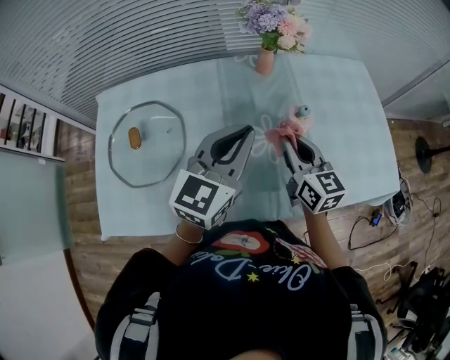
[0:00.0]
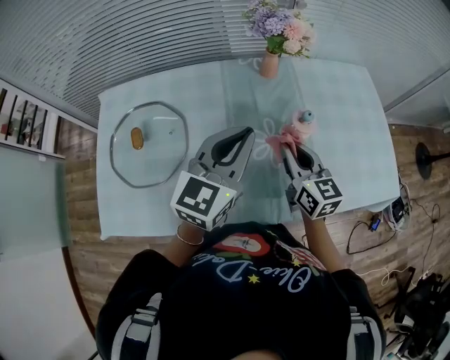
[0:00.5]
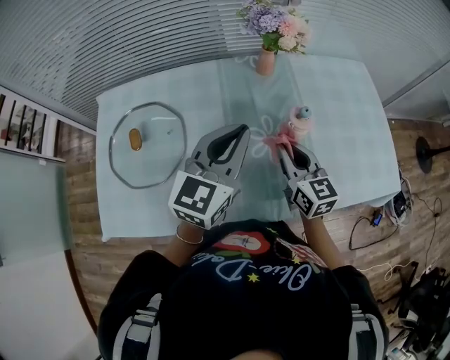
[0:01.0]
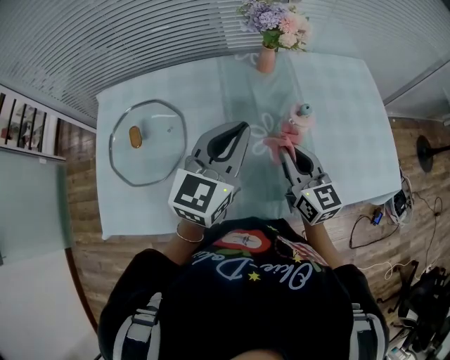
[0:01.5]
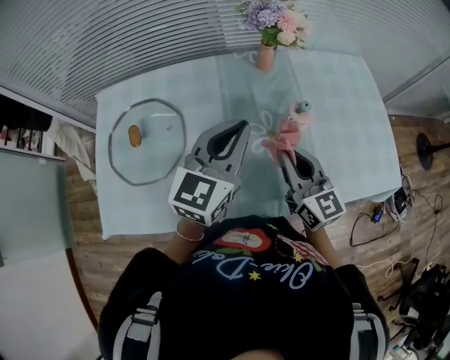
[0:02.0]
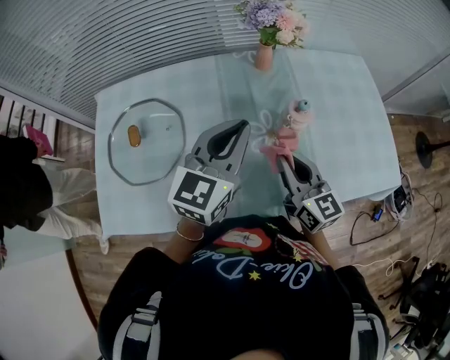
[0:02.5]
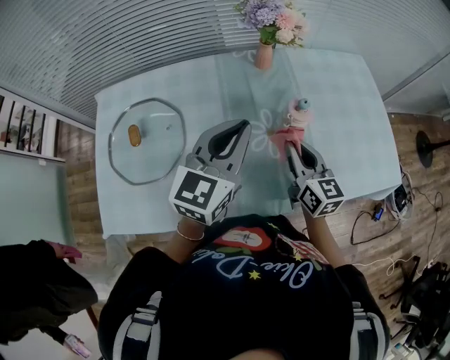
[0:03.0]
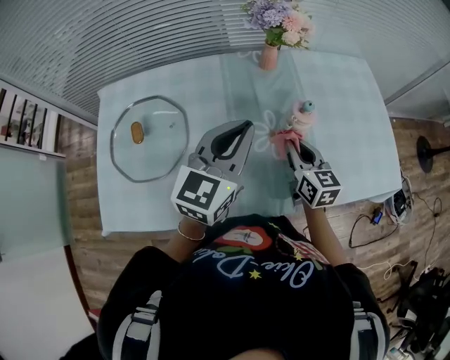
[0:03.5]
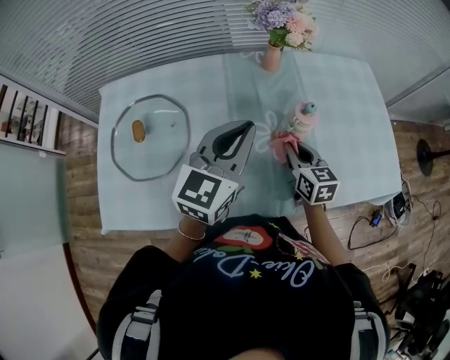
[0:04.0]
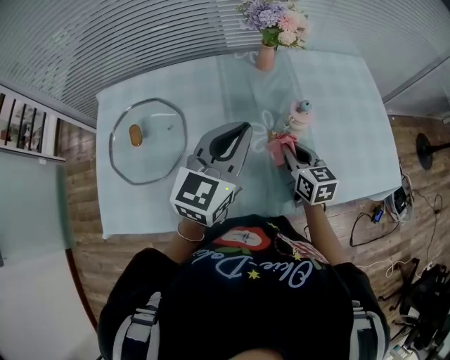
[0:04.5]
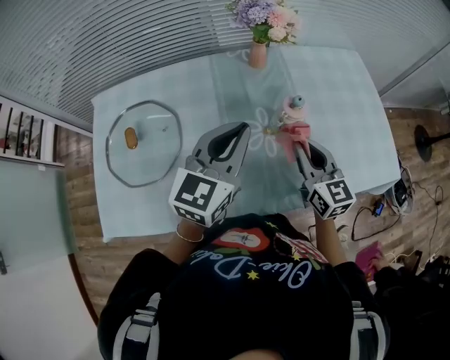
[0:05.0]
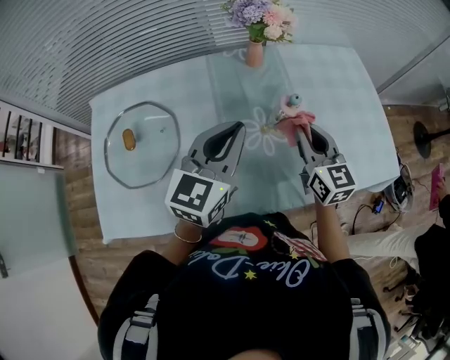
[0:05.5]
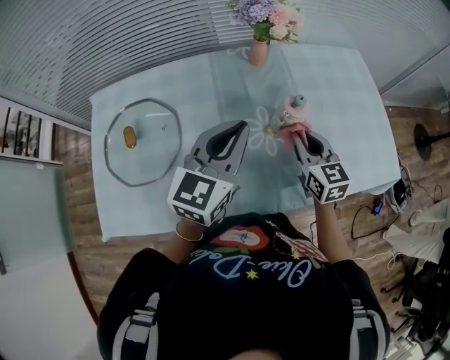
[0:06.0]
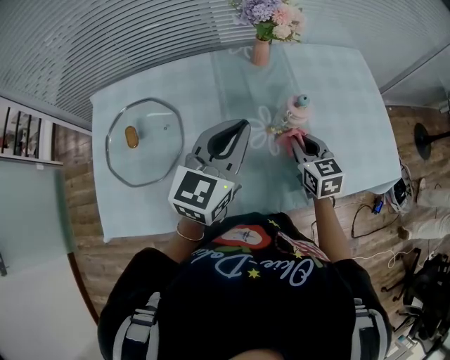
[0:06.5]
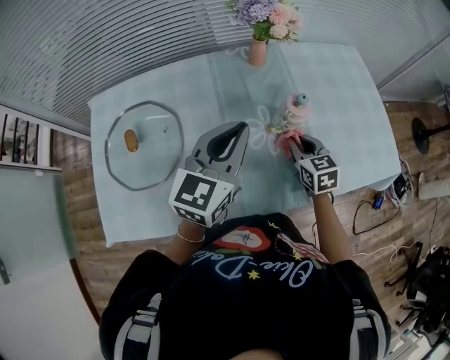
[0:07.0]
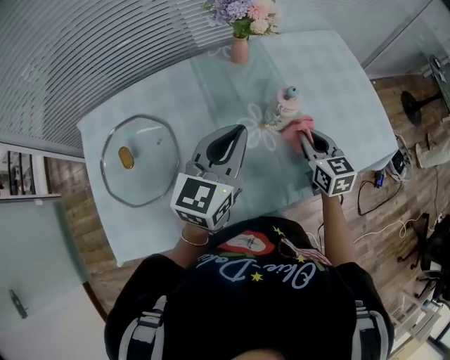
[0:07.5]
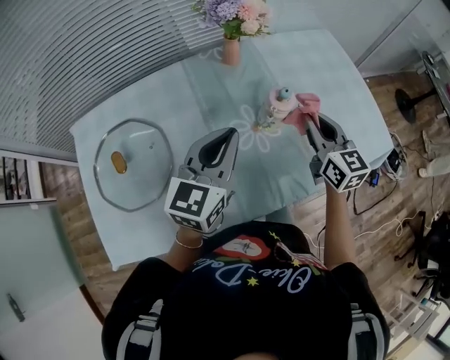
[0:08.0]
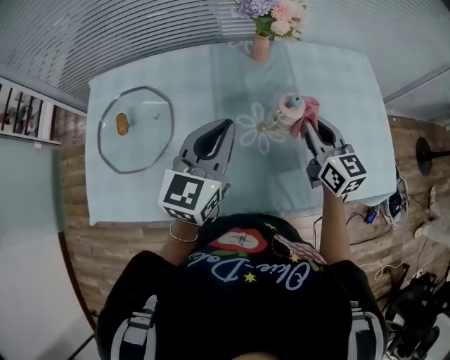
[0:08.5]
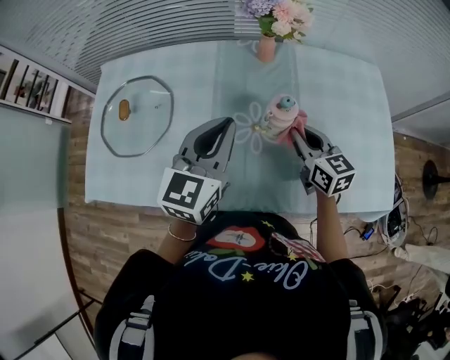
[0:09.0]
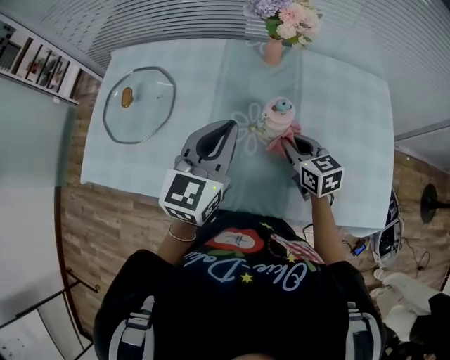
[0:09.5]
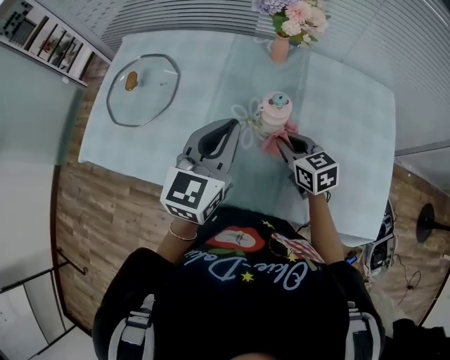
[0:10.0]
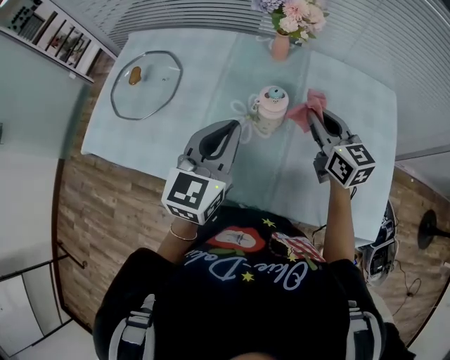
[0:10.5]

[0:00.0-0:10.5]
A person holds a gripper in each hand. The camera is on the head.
0:00.0 to 0:02.0: The right gripper changes place by roughly 5 cm.
0:02.0 to 0:04.0: The right gripper goes about 10 cm downward, and swivels about 20 degrees.
0:04.0 to 0:06.5: The right gripper moves some 10 cm upward and comes back.
0:06.5 to 0:08.5: The right gripper moves upward, about 10 cm.
0:08.5 to 0:10.5: The left gripper is displaced to the right and backward by about 10 cm; the right gripper moves to the right, approximately 5 cm, goes downward and returns, approximately 10 cm each way, and rotates some 20 degrees.

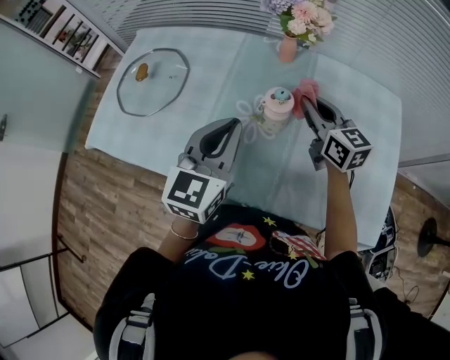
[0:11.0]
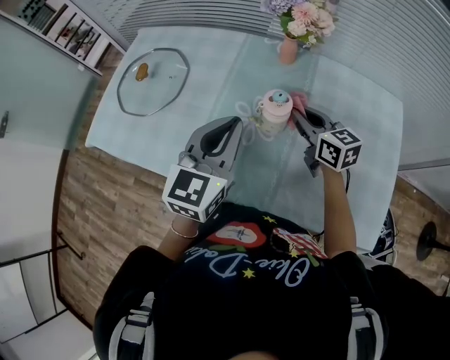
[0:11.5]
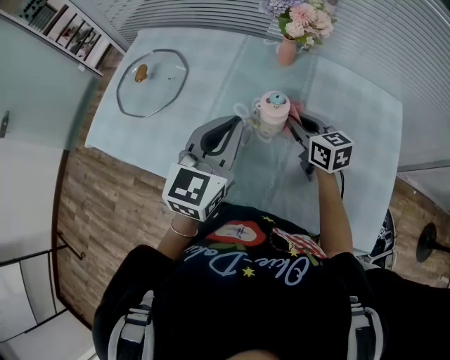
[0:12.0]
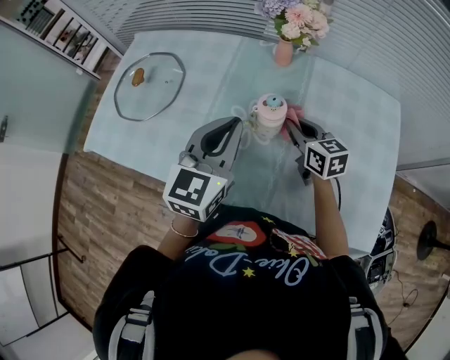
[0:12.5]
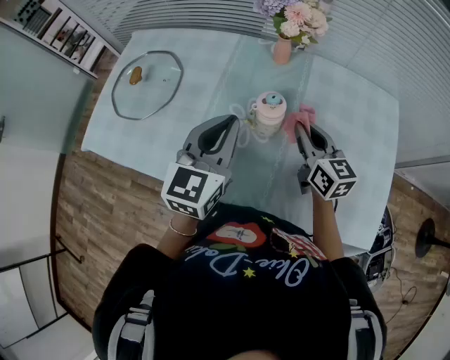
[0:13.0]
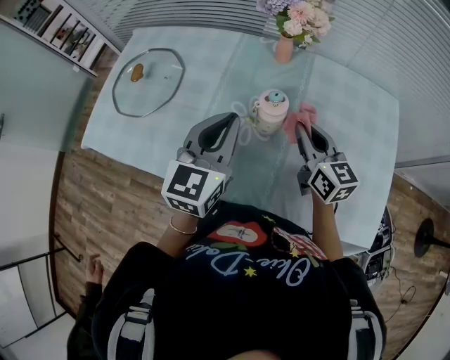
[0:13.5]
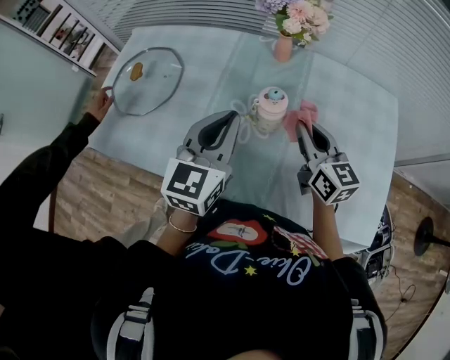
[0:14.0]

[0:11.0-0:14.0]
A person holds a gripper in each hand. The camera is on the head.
0:11.0 to 0:12.5: The right gripper goes roughly 10 cm downward.
0:12.5 to 0:14.0: The right gripper shifts about 10 cm upward.

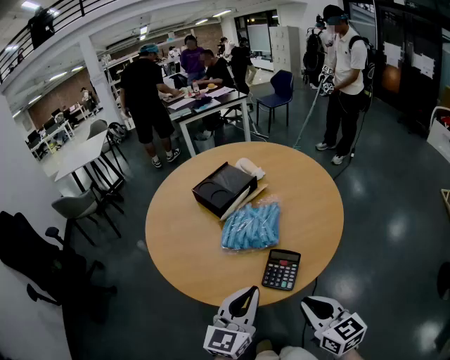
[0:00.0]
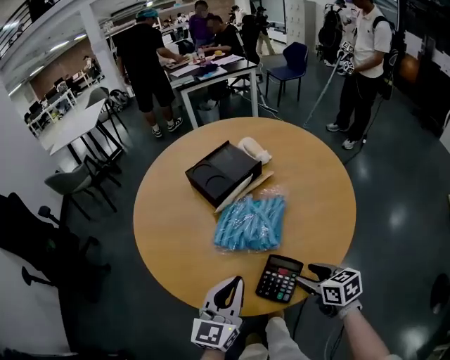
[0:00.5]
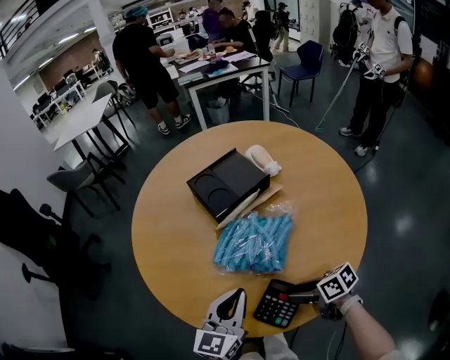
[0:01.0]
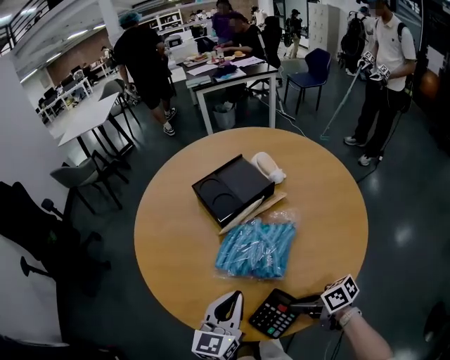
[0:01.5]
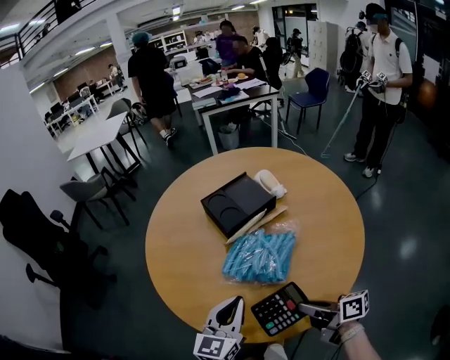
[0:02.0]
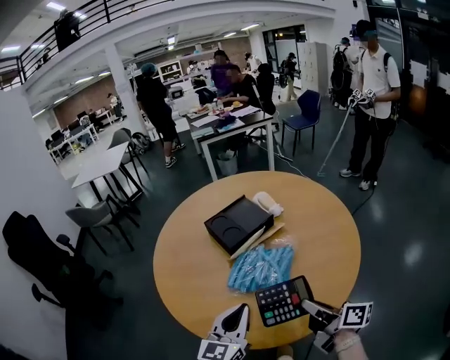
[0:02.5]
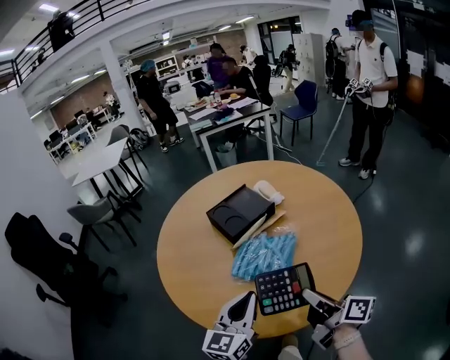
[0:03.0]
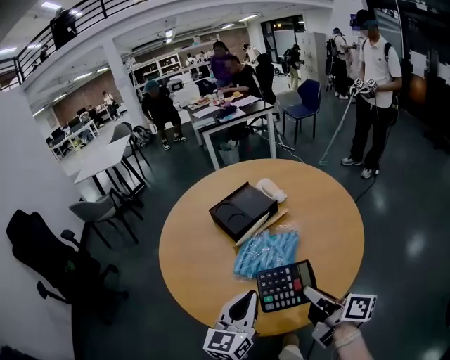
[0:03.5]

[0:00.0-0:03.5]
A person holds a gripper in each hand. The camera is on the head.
0:00.0 to 0:02.0: The right gripper ends up about 20 cm from where it was, turns by some 60 degrees, and opens and closes again, while the left gripper ends up approximately 15 cm from where it was.
0:02.0 to 0:03.5: The left gripper heads upward, covering approximately 5 cm. The right gripper goes some 10 cm upward, and changes its angle by roughly 30 degrees.

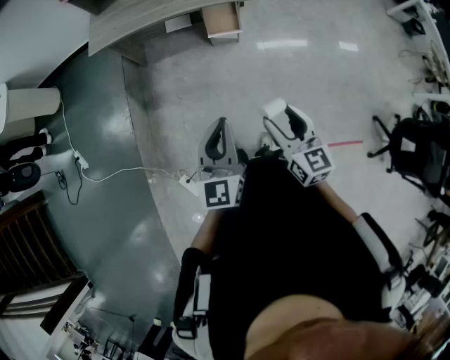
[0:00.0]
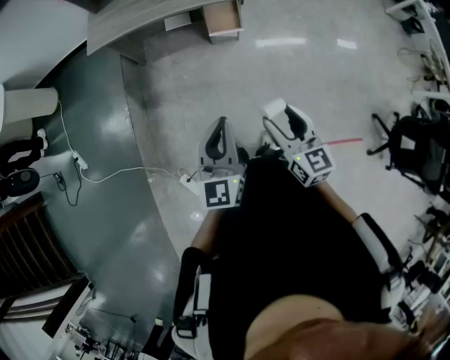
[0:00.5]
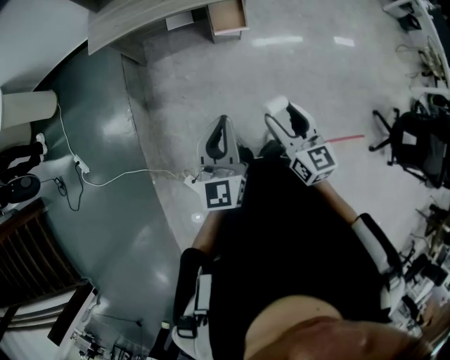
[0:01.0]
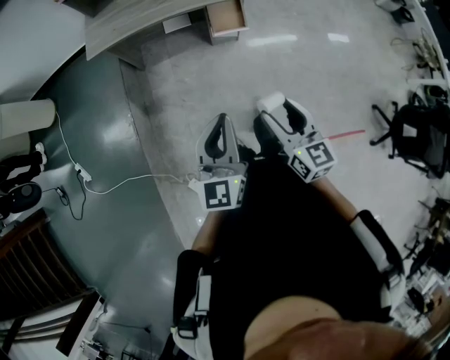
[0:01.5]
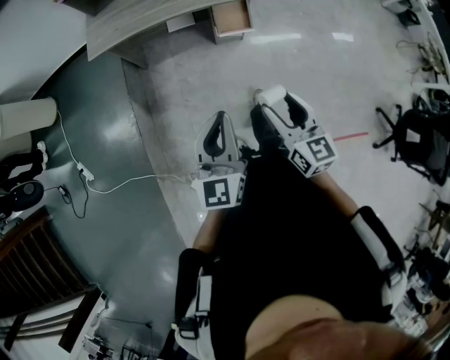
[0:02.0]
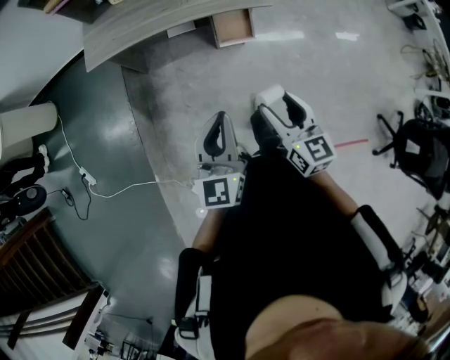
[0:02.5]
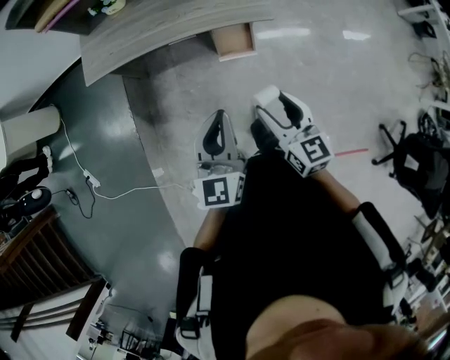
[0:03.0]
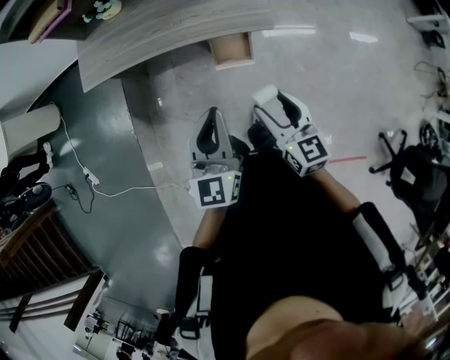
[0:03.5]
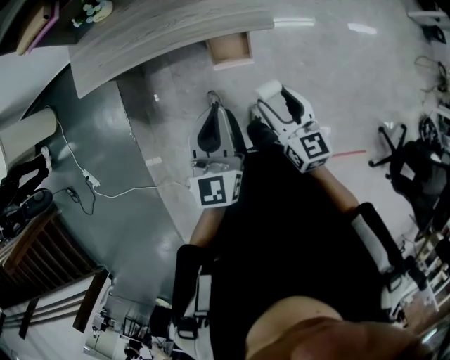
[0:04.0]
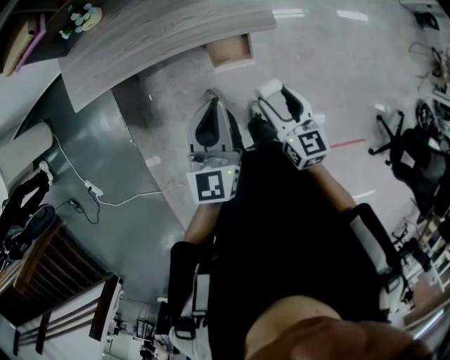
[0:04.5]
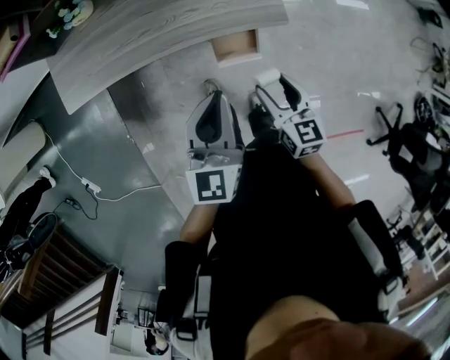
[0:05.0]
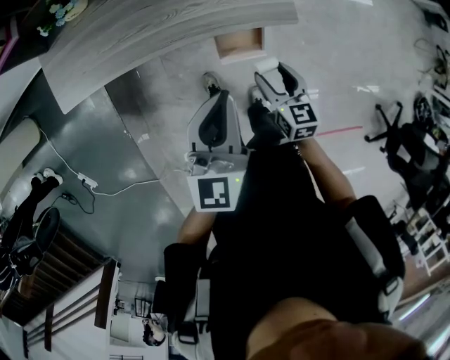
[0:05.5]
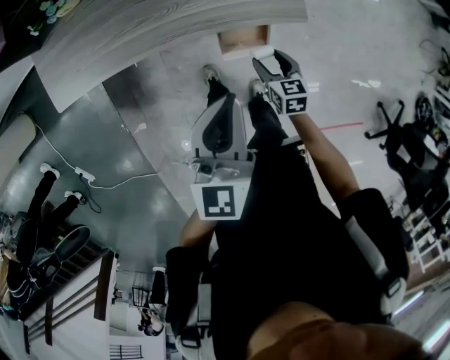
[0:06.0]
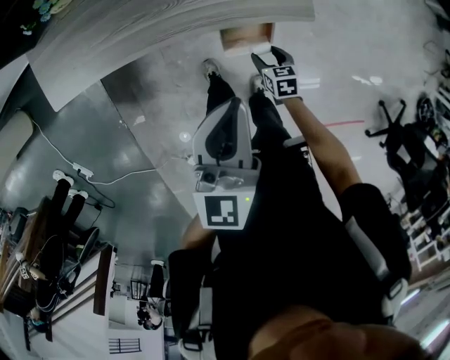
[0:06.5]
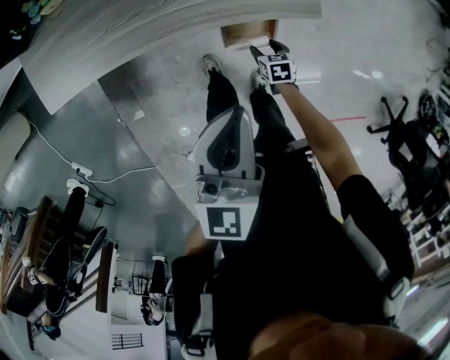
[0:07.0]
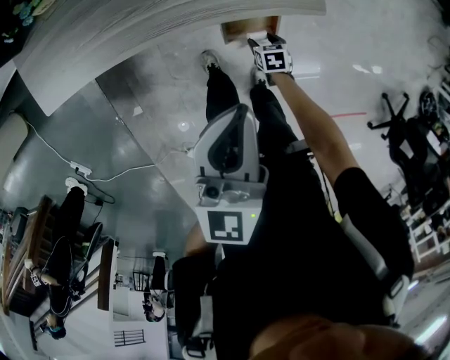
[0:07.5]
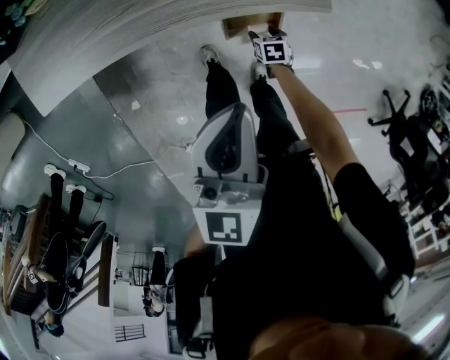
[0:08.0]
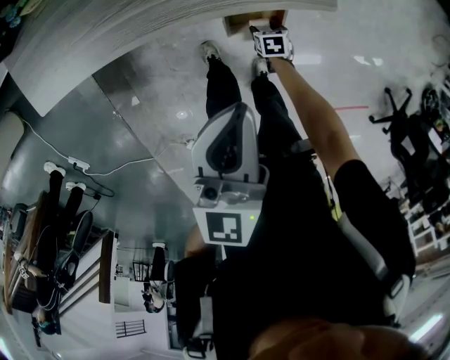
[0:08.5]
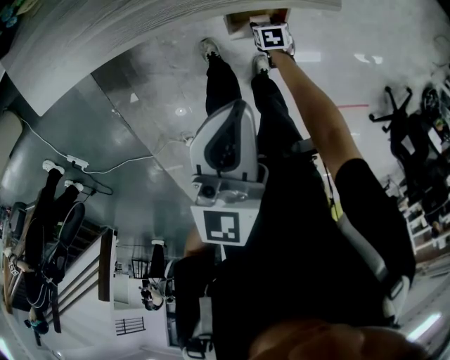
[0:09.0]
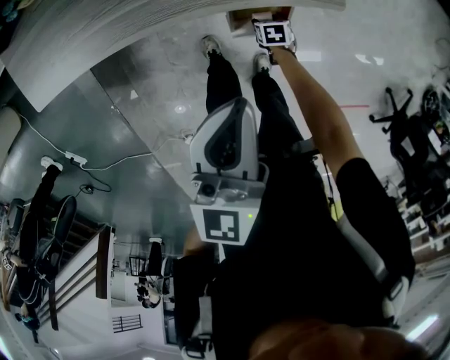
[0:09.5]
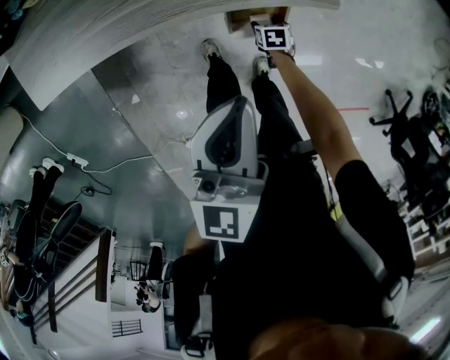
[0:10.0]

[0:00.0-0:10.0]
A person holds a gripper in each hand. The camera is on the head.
0:00.0 to 0:02.0: The two grippers go about 15 cm to the left and forward.
0:02.0 to 0:04.0: Both grippers move forward and to the right, approximately 35 cm.
0:04.0 to 0:06.0: The right gripper moves downward and forward, approximately 30 cm, and rotates about 30 degrees; the left gripper moves forward, some 15 cm.
0:06.0 to 0:08.0: The right gripper travels downward by approximately 25 cm, and turns by approximately 20 degrees.
0:08.0 to 0:10.0: There are only small adjustments of the grippers.
